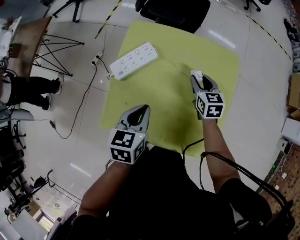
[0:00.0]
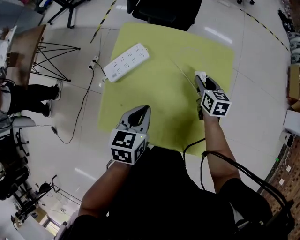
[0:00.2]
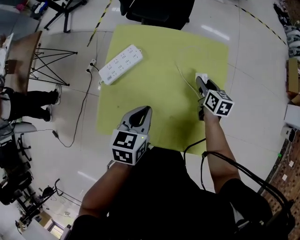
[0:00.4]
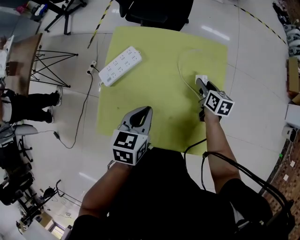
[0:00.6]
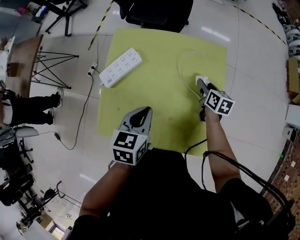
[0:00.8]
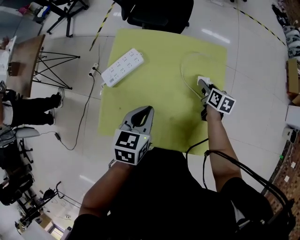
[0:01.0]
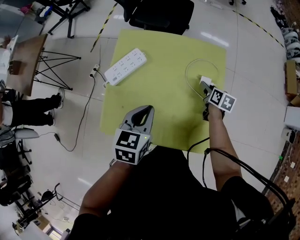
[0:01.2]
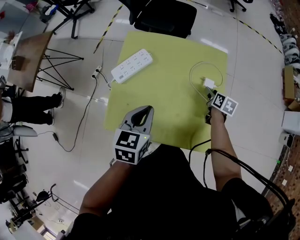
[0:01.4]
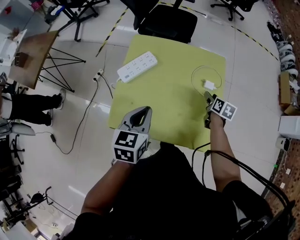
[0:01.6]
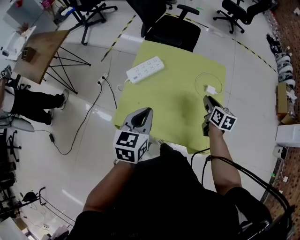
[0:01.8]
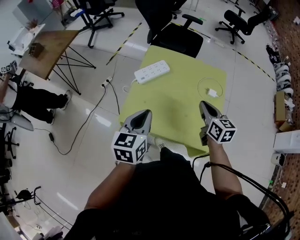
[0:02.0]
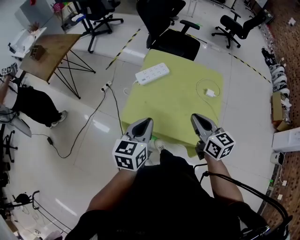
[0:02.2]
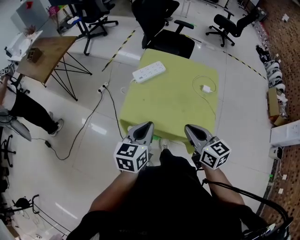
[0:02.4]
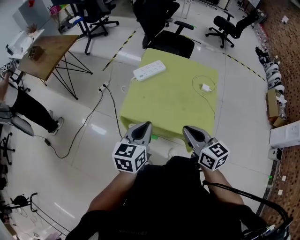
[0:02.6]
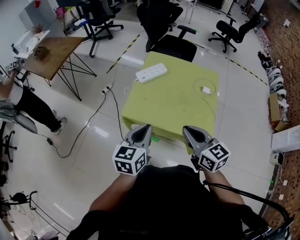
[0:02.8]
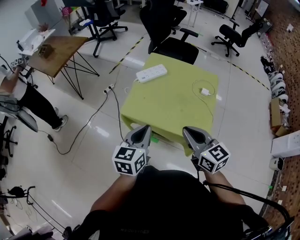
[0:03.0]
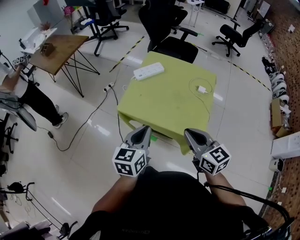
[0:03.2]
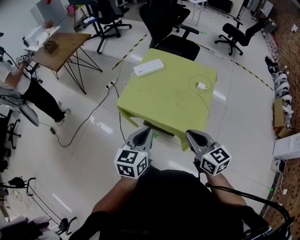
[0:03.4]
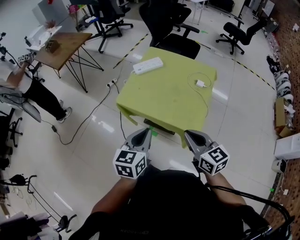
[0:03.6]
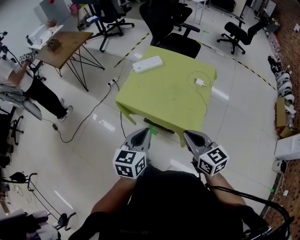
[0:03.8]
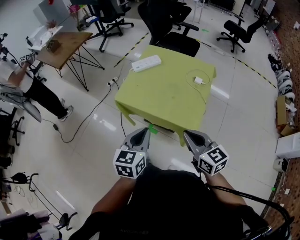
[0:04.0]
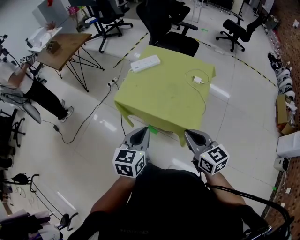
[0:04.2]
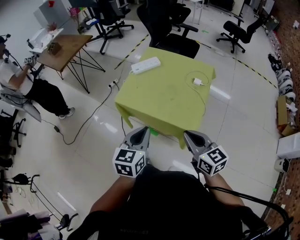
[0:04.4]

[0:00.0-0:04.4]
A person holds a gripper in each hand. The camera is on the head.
0:00.0 to 0:01.4: The right gripper moves to the right, roughly 15 cm, rotates roughly 40 degrees, and opens its fingers. Meanwhile the left gripper changes place by about 5 cm.
0:01.4 to 0:03.0: The left gripper moves backward, some 25 cm, and changes its angle by about 20 degrees. The right gripper shifts roughly 50 cm backward, upward and to the left, tilts its fingers about 30 degrees upward, and closes up.
0:03.0 to 0:04.4: Both grippers move backward and to the right, about 15 cm.

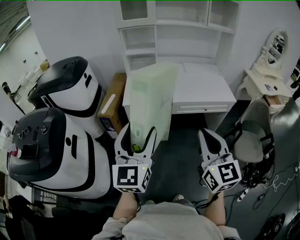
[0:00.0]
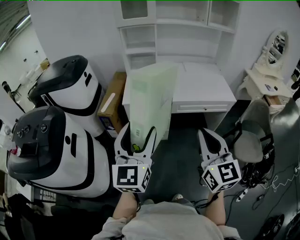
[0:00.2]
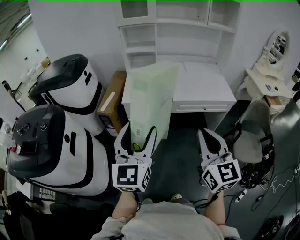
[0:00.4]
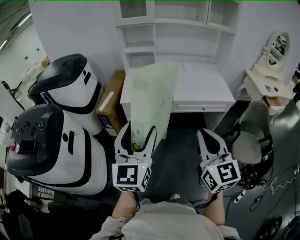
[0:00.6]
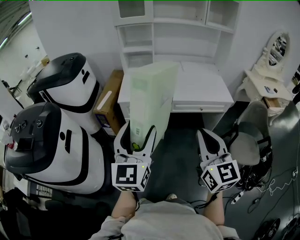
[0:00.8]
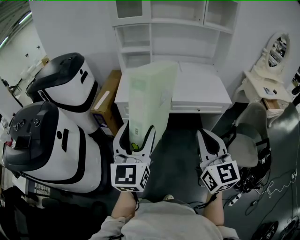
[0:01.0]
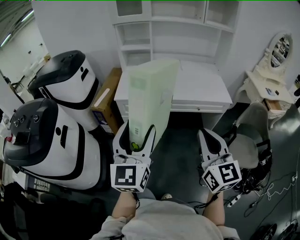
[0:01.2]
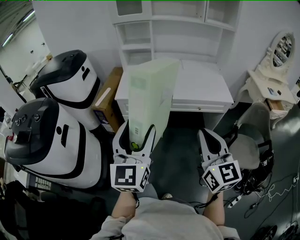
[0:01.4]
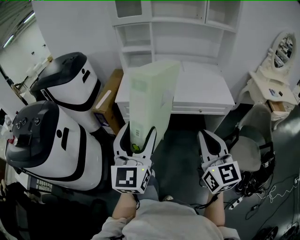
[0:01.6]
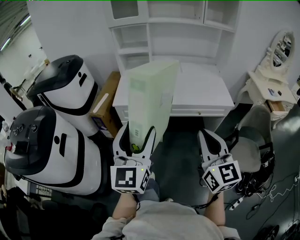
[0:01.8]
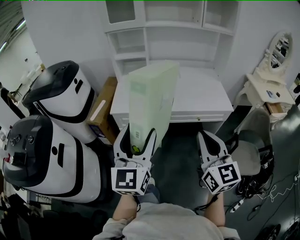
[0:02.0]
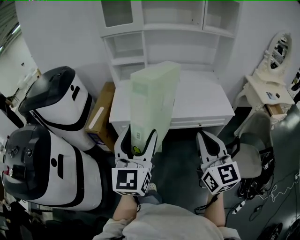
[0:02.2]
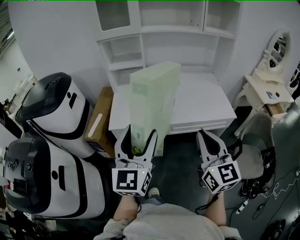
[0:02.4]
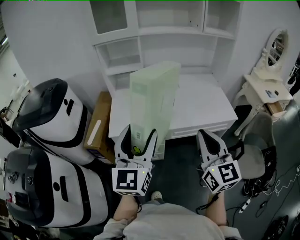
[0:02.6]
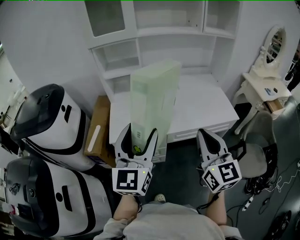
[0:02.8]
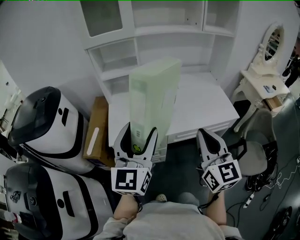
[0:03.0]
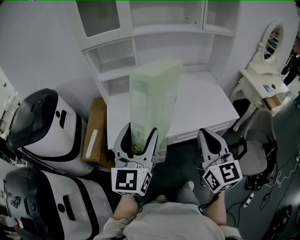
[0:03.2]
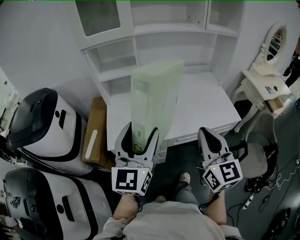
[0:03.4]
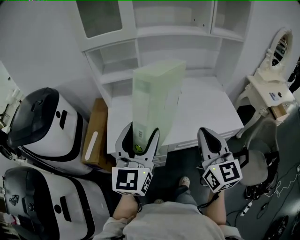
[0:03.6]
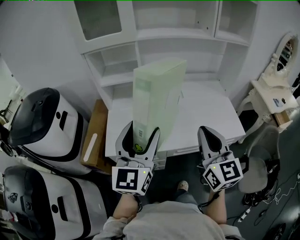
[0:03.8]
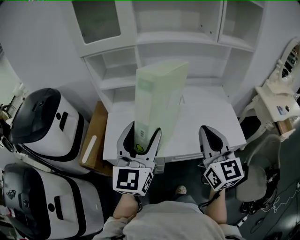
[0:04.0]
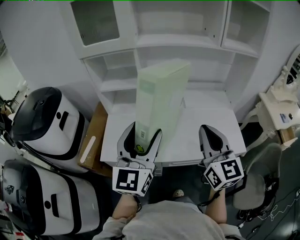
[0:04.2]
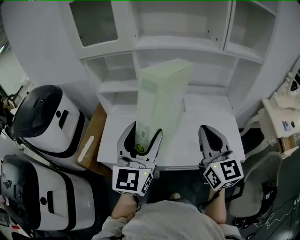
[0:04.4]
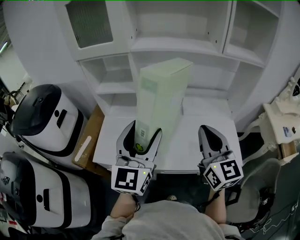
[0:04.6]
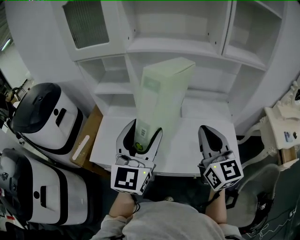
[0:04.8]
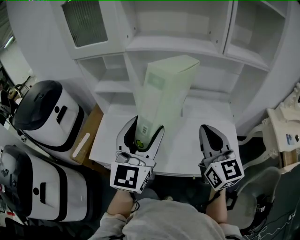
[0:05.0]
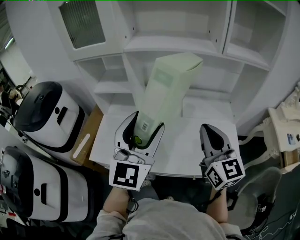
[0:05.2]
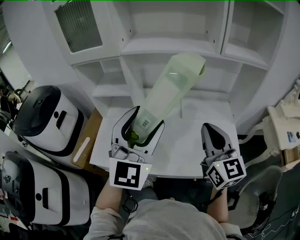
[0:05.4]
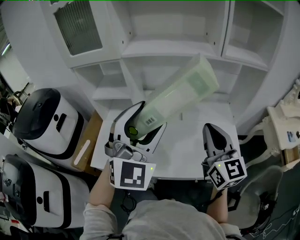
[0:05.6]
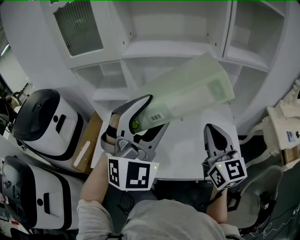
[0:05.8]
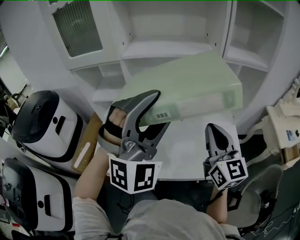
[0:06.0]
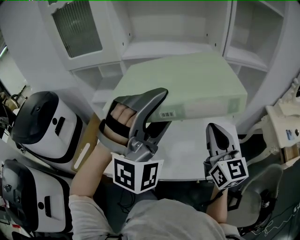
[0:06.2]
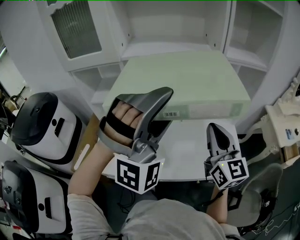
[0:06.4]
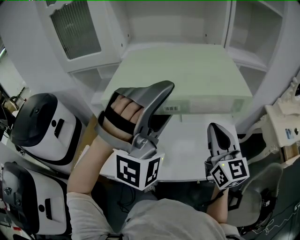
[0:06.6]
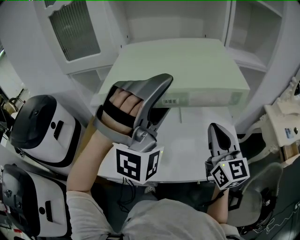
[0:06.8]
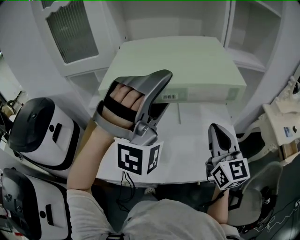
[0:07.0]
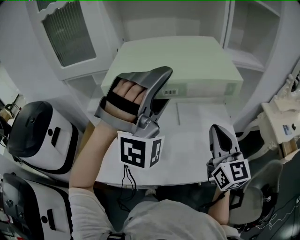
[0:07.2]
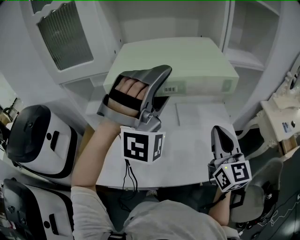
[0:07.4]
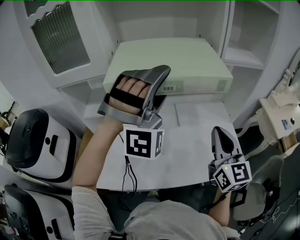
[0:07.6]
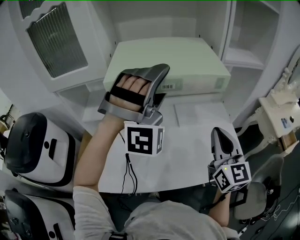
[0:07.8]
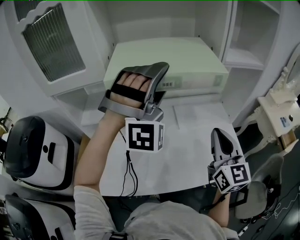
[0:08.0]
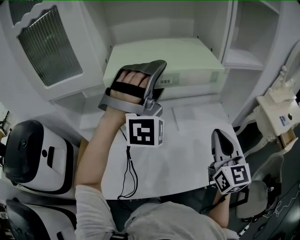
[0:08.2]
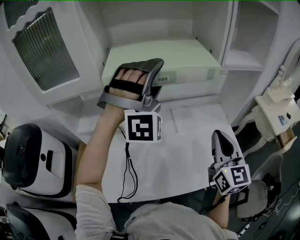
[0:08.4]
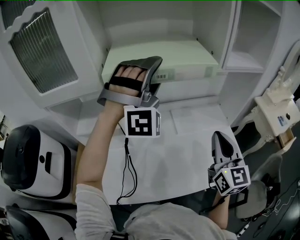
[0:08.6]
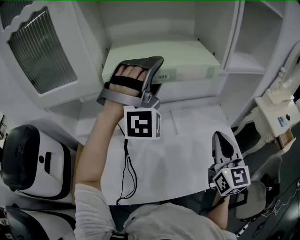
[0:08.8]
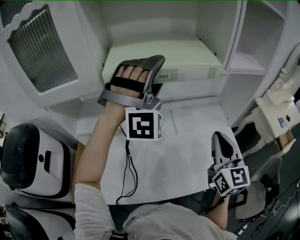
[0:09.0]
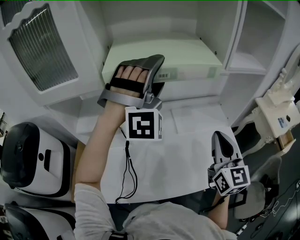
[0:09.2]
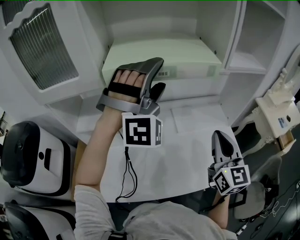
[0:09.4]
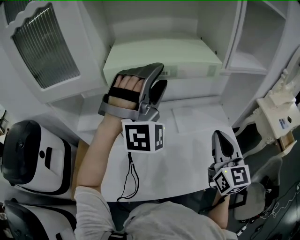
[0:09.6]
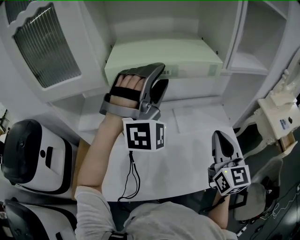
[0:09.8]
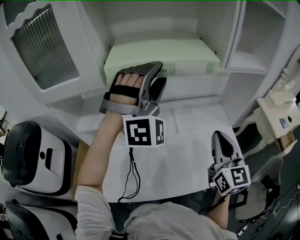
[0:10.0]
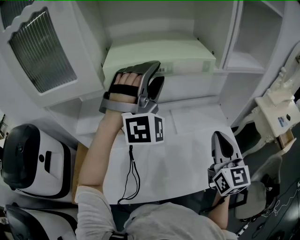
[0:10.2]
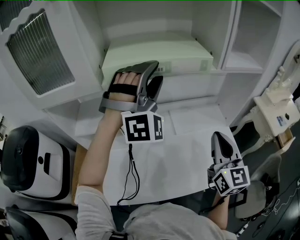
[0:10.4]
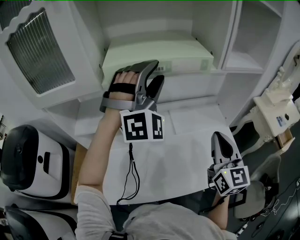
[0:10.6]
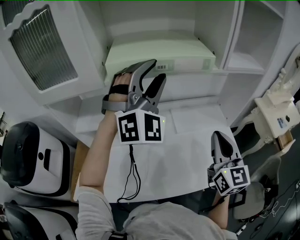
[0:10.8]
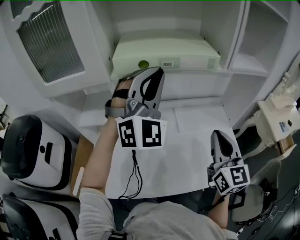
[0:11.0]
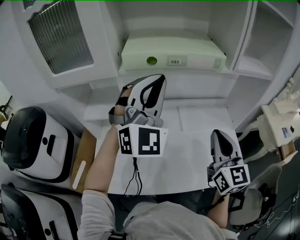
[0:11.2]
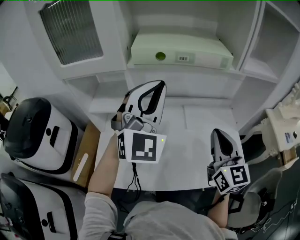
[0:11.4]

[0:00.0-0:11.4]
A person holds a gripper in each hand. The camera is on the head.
0:00.0 to 0:01.4: Both grippers travel together to the right, approximately 10 cm.
0:01.4 to 0:02.8: Both grippers move forward, some 25 cm.
0:02.8 to 0:04.2: Both grippers move forward, roughly 20 cm.
0:04.2 to 0:05.6: The right gripper heads forward and to the right, covering approximately 15 cm, while the left gripper goes approximately 15 cm to the right, forward and upward, and changes its angle by approximately 40 degrees.
0:05.6 to 0:07.2: The left gripper heads forward and upward, covering roughly 10 cm, and twists approximately 50 degrees clockwise, seen from behind.
0:07.2 to 0:08.6: The left gripper travels forward by some 15 cm. The right gripper heads forward, covering approximately 5 cm.
0:08.6 to 0:10.0: There are only small adjustments of the grippers.
0:10.0 to 0:11.4: The left gripper moves backward, approximately 10 cm, rolls counterclockwise, seen from behind, by roughly 40 degrees, and closes its fingers.

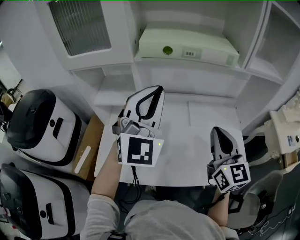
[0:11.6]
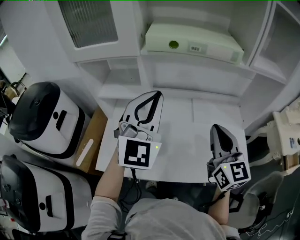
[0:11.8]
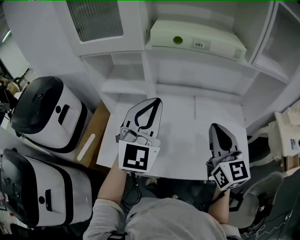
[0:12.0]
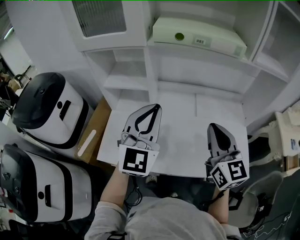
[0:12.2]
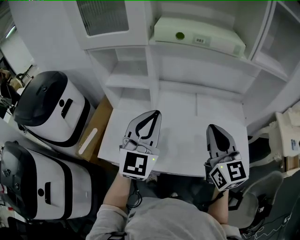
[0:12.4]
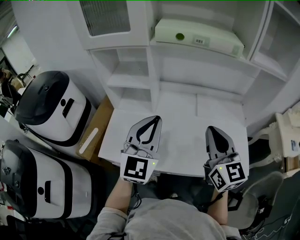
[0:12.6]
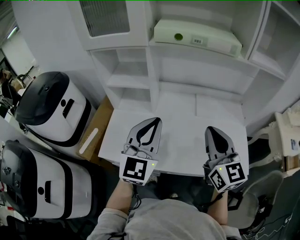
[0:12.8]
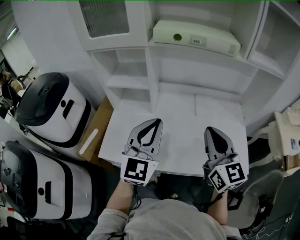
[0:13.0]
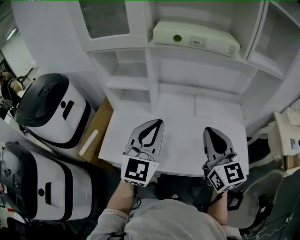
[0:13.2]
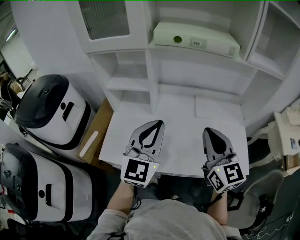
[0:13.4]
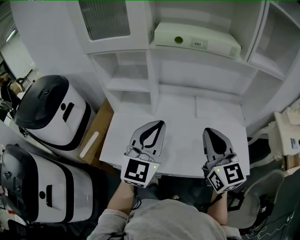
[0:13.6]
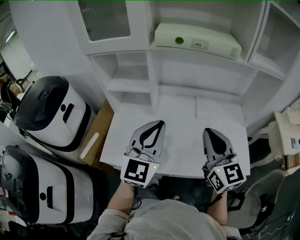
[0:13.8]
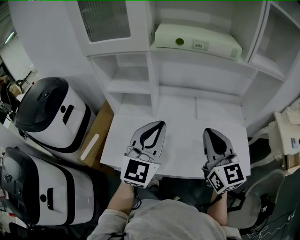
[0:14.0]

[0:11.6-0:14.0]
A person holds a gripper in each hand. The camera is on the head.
0:11.6 to 0:12.8: The right gripper is displaced backward by about 5 cm. The left gripper goes roughly 15 cm backward and downward, and turns by approximately 20 degrees.
0:12.8 to 0:14.0: The grippers stay close to where they were, moving slightly.

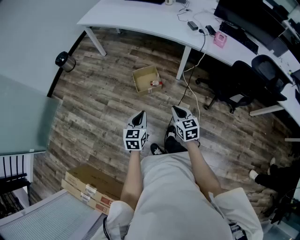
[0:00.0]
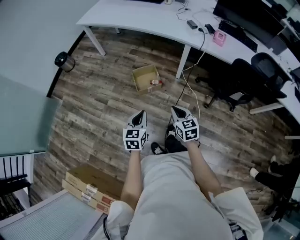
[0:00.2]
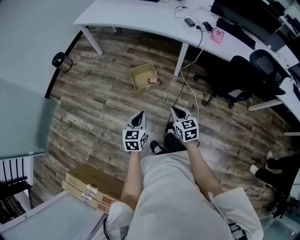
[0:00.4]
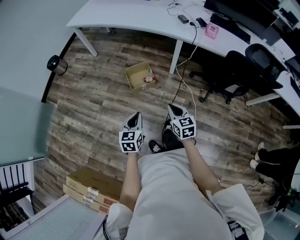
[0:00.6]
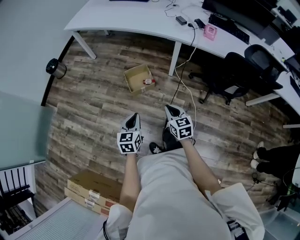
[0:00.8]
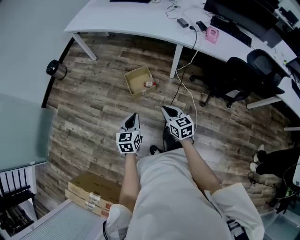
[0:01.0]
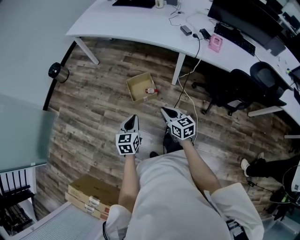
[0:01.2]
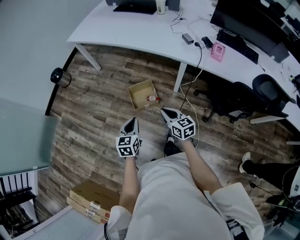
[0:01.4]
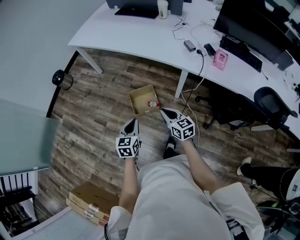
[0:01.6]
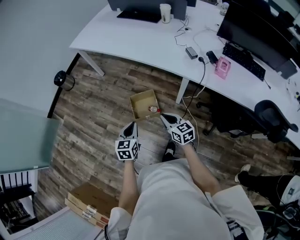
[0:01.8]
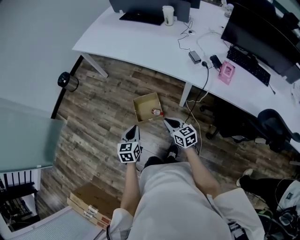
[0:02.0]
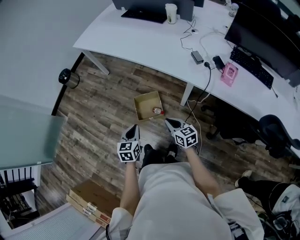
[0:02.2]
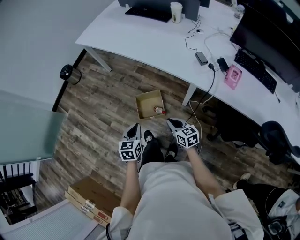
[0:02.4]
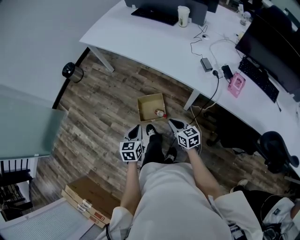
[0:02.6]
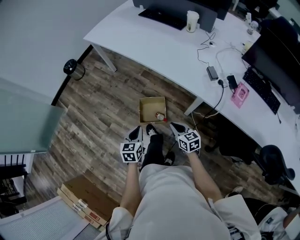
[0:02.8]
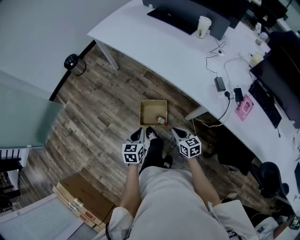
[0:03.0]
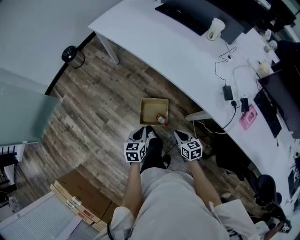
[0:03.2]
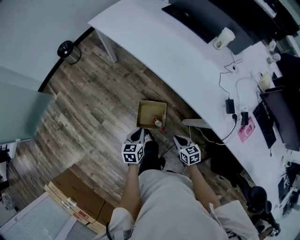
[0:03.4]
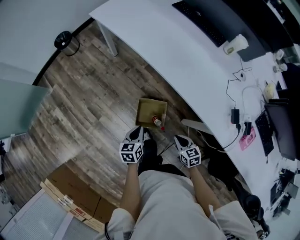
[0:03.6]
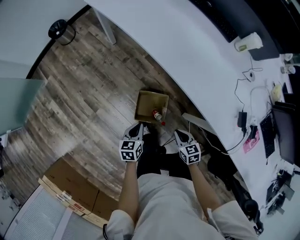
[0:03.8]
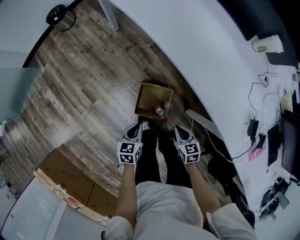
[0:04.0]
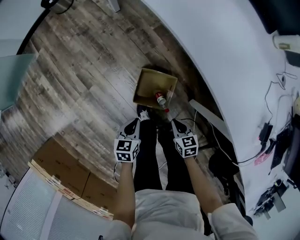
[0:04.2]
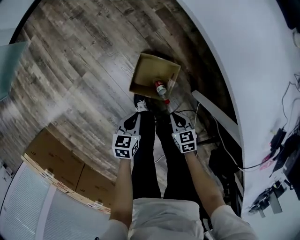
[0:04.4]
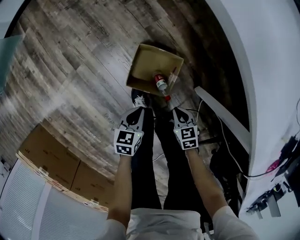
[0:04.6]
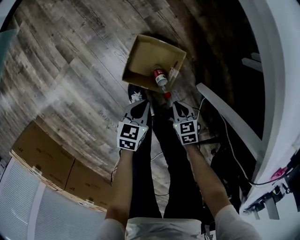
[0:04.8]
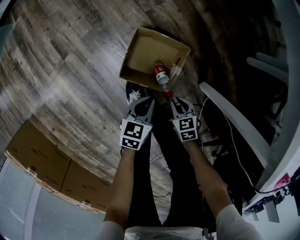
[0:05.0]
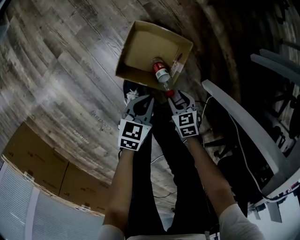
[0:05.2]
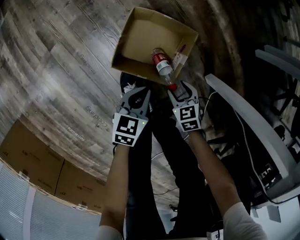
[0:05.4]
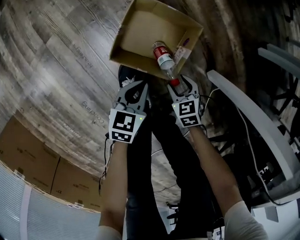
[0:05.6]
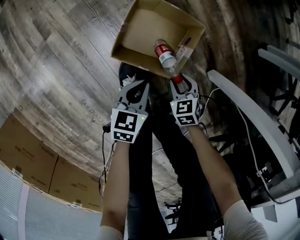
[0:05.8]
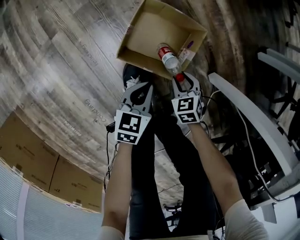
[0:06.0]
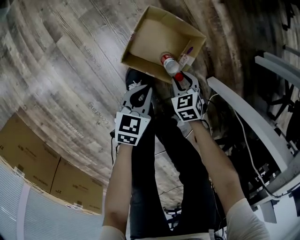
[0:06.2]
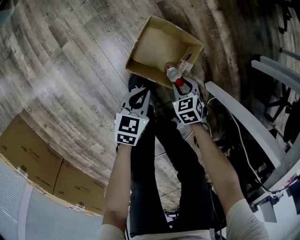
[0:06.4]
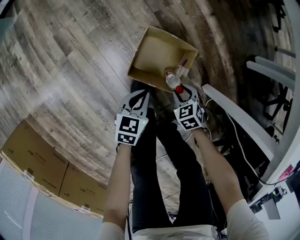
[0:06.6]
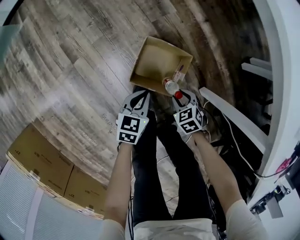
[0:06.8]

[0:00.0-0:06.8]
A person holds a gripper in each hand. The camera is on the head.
0:00.0 to 0:01.4: Both grippers travel together forward, about 15 cm.
0:01.4 to 0:02.8: The right gripper travels forward and to the right by about 20 cm. The left gripper is displaced forward by about 15 cm.
0:02.8 to 0:04.0: The two grippers go some 30 cm forward and downward. The right gripper changes its angle by some 20 degrees.
0:04.0 to 0:05.4: The two grippers go approximately 40 cm downward. The right gripper rotates roughly 30 degrees, and opens.
0:05.4 to 0:06.8: The left gripper travels upward, to the left and forward by some 15 cm, while the right gripper travels upward and forward by approximately 15 cm.
